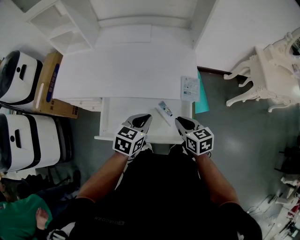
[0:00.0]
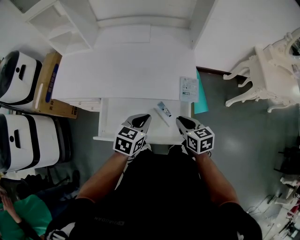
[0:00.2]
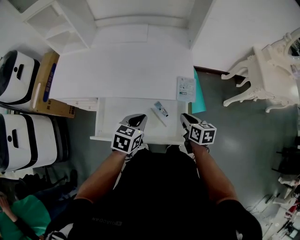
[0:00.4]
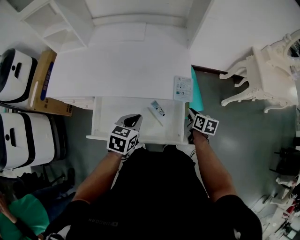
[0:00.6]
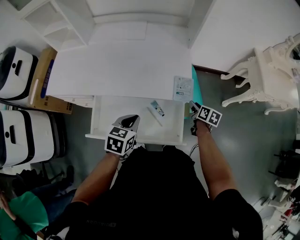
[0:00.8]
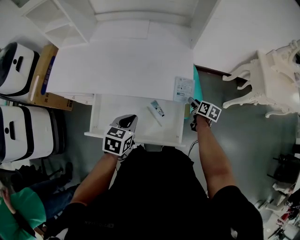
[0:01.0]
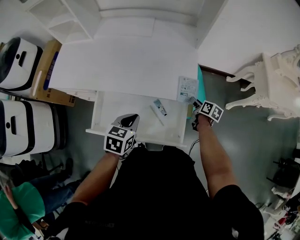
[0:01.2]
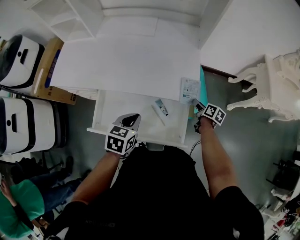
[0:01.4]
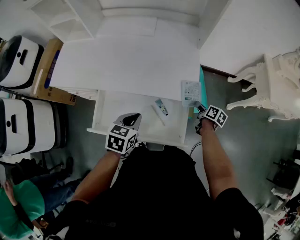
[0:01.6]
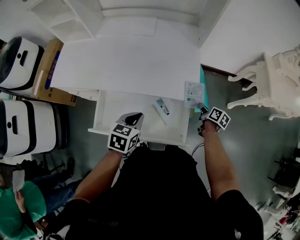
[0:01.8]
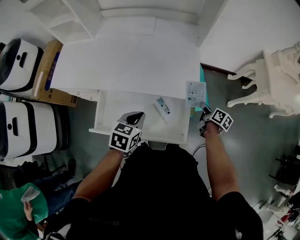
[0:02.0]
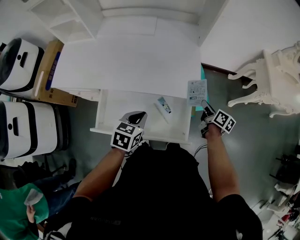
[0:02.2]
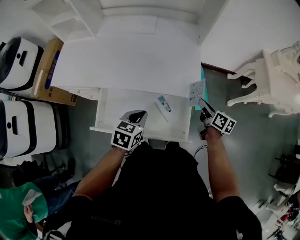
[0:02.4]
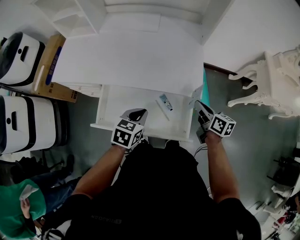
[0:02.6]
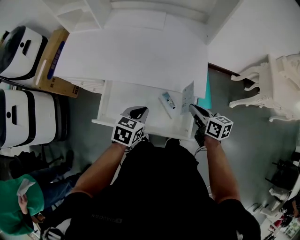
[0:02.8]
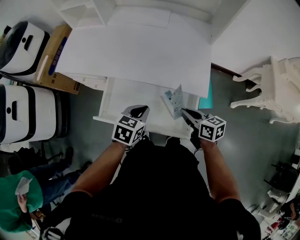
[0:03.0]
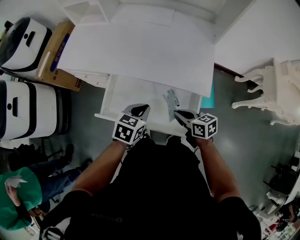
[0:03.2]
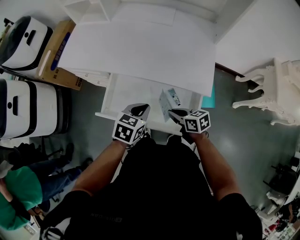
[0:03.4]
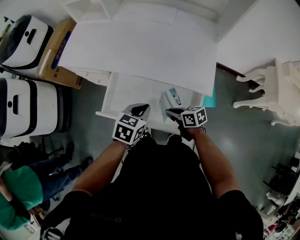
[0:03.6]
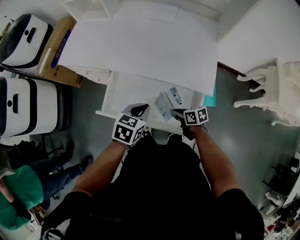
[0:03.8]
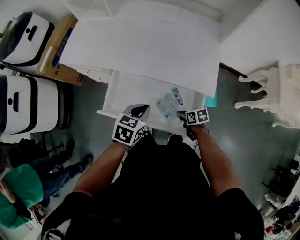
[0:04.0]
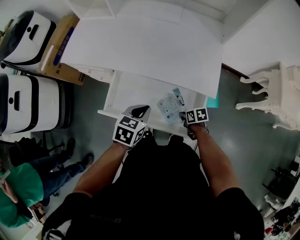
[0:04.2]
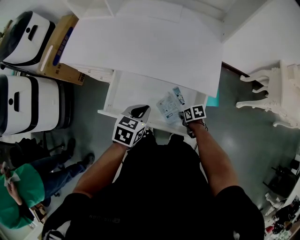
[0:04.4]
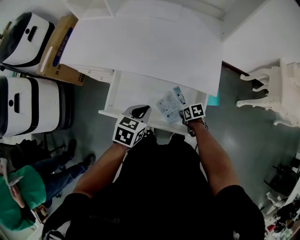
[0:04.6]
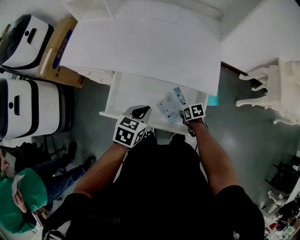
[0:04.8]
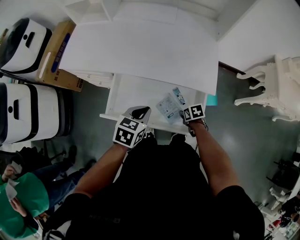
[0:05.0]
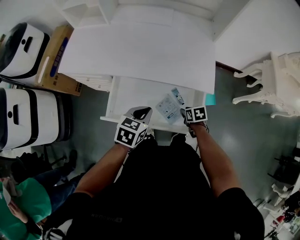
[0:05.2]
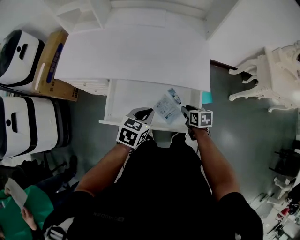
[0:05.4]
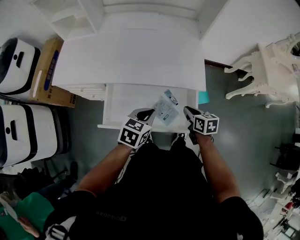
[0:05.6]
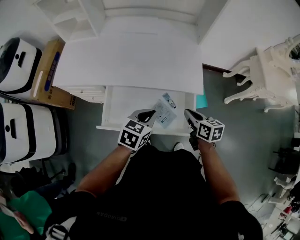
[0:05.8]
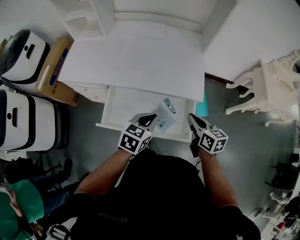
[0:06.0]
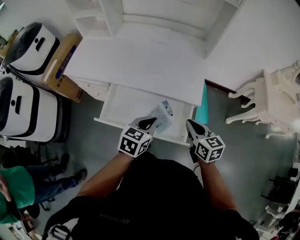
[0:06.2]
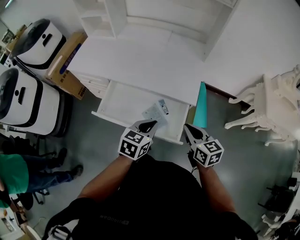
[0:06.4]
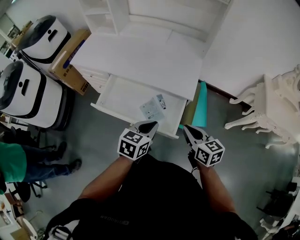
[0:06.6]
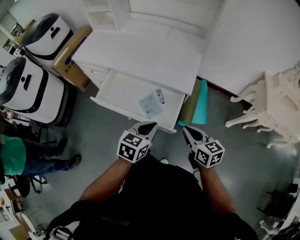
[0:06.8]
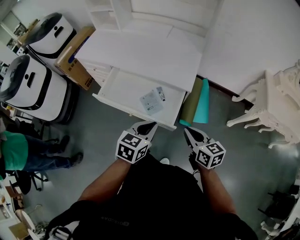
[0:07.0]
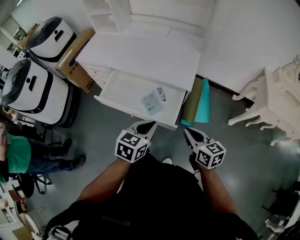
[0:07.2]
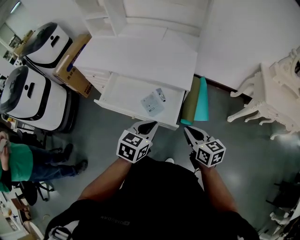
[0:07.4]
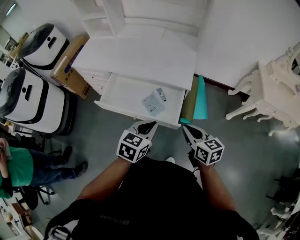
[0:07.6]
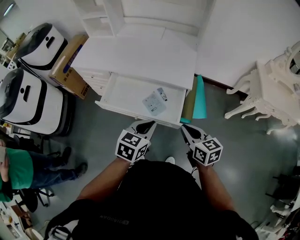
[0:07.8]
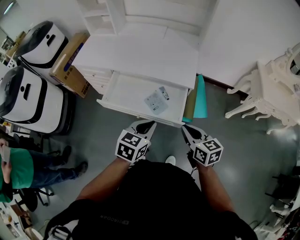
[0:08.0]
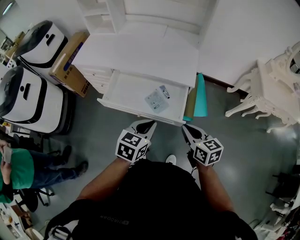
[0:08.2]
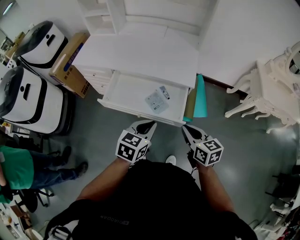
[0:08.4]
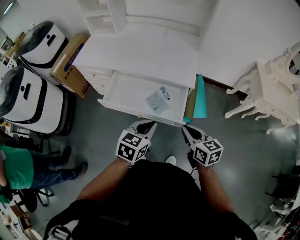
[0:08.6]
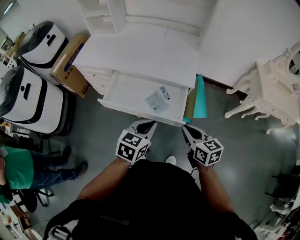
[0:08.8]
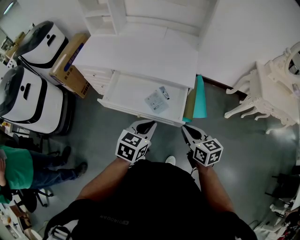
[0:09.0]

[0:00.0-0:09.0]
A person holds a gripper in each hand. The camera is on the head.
0.0 to 1.6 s: The right gripper is displaced to the right, downward and forward by about 25 cm, and rolls clockwise, seen from behind, by roughly 40 degrees.
1.6 to 3.0 s: The right gripper moves to the left, upward and backward, about 25 cm, and changes its angle by approximately 50 degrees.
3.0 to 4.4 s: The right gripper is displaced downward by roughly 20 cm, and angles its fingers downward, by approximately 30 degrees.
4.4 to 6.0 s: The right gripper heads upward, covering approximately 25 cm, tilts its fingers some 30 degrees upward, and opens and closes again, while the left gripper moves approximately 10 cm.
6.0 to 7.6 s: The right gripper heads backward, covering roughly 20 cm. Meanwhile the left gripper heads backward and to the right, covering approximately 20 cm.
7.6 to 9.0 s: There are only small adjustments of the grippers.

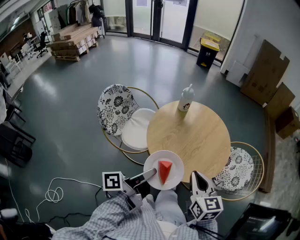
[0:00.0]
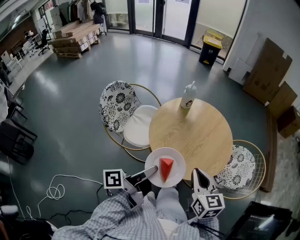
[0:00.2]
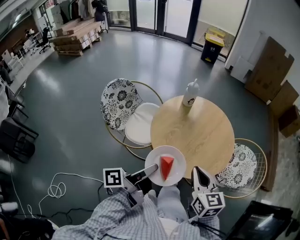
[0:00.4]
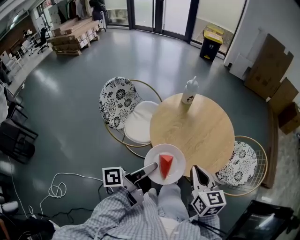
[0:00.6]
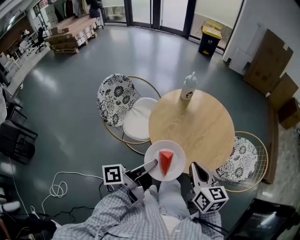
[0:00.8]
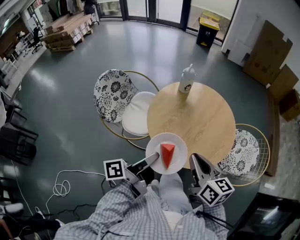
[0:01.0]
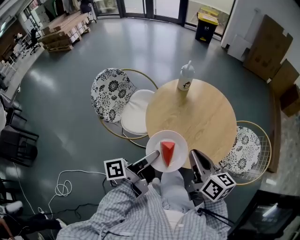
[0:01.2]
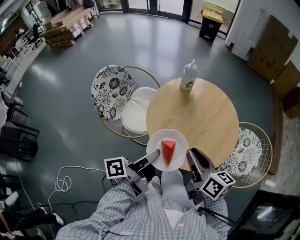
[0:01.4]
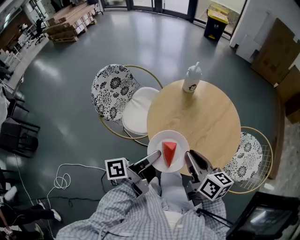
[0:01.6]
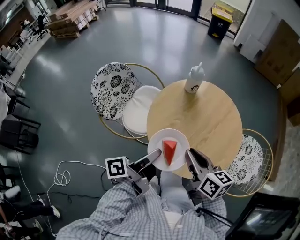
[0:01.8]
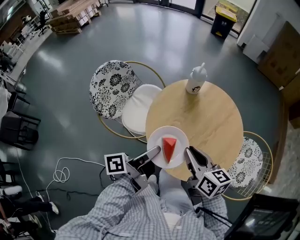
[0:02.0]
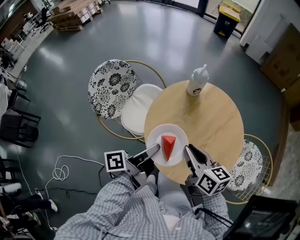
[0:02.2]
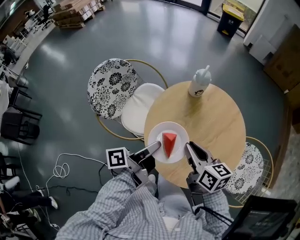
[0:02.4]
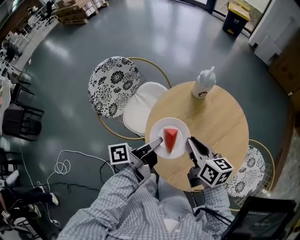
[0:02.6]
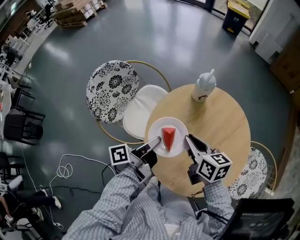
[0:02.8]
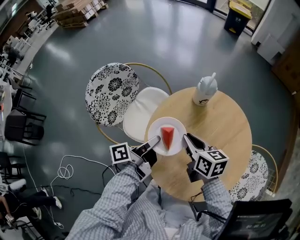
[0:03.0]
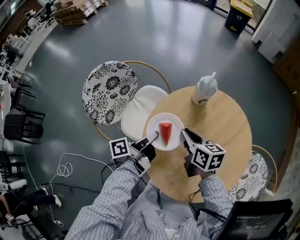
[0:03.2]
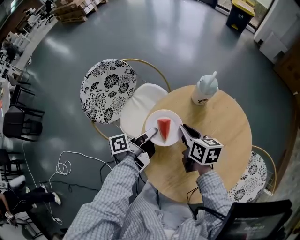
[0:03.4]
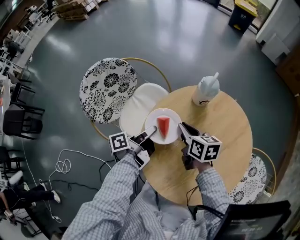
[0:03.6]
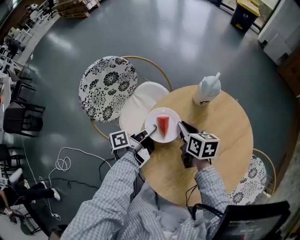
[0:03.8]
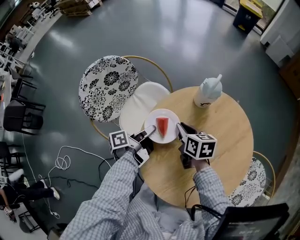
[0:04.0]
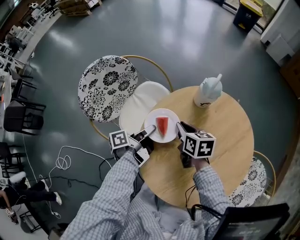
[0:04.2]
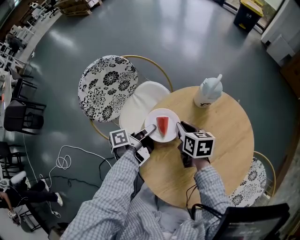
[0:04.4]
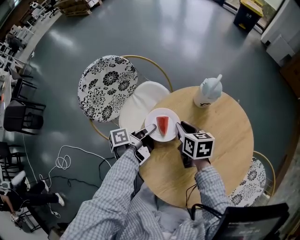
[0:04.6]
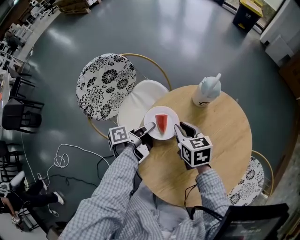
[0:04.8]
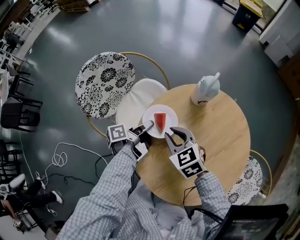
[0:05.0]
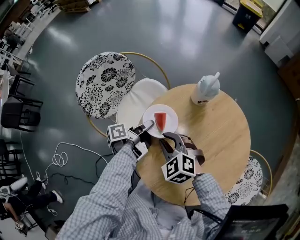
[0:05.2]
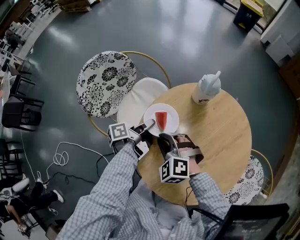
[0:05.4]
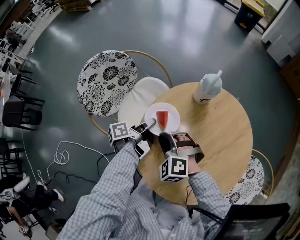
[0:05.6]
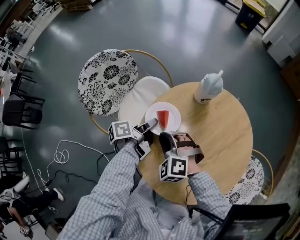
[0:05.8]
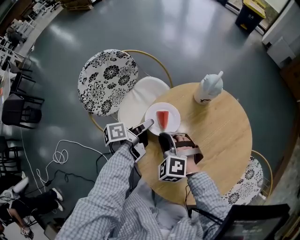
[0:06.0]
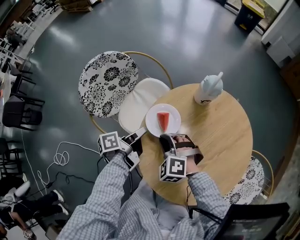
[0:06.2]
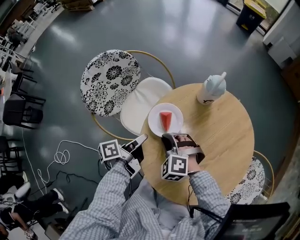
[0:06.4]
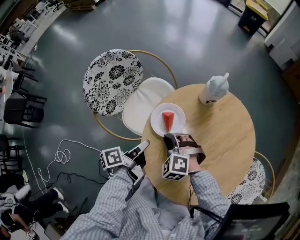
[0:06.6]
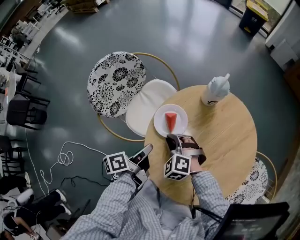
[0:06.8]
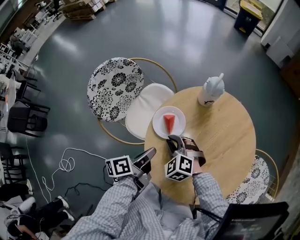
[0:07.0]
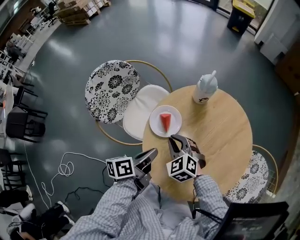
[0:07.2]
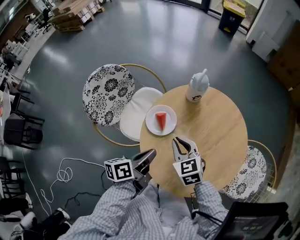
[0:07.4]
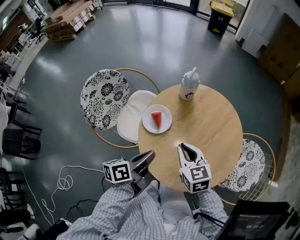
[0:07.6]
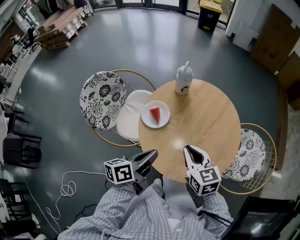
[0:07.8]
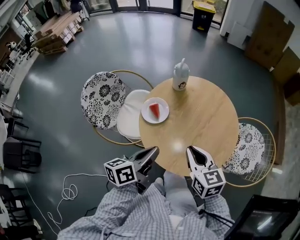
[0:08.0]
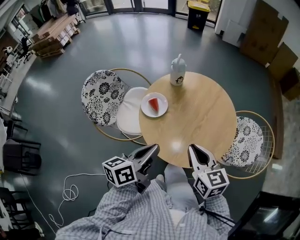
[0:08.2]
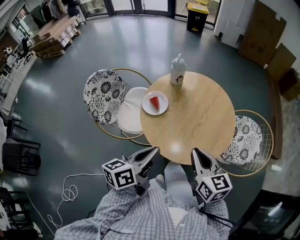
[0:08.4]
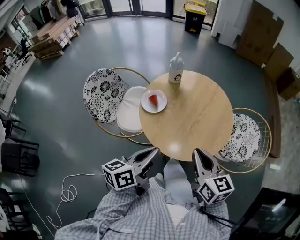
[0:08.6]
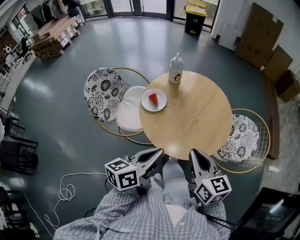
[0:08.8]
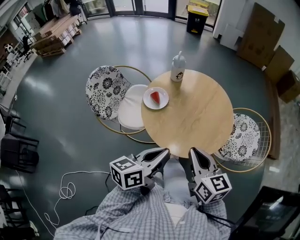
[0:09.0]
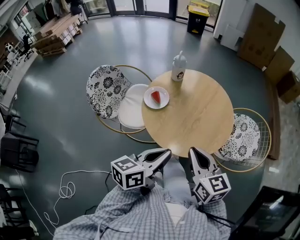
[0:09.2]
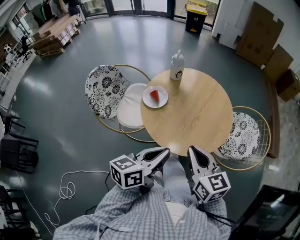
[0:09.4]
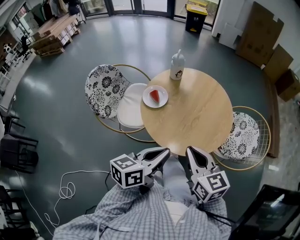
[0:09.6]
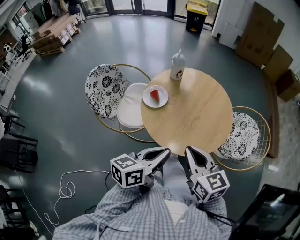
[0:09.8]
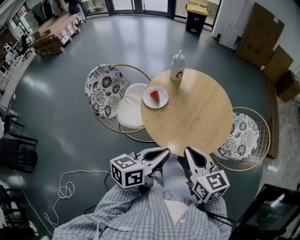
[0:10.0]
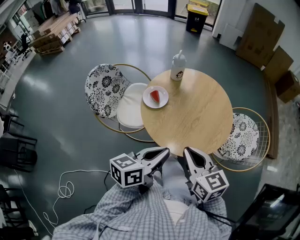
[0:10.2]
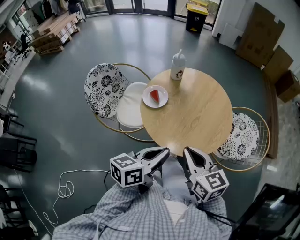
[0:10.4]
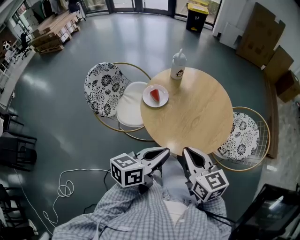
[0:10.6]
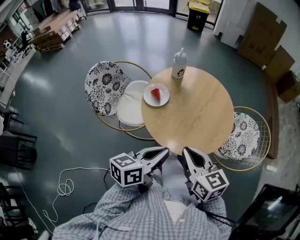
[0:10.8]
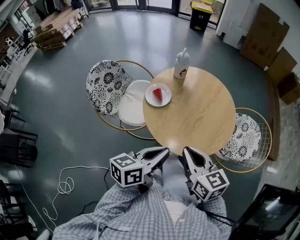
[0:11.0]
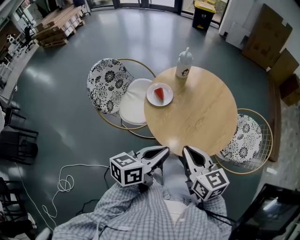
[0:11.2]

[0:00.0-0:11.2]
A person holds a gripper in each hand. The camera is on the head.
0.0 to 1.6 s: Both grippers travel together forward, about 10 cm. The right gripper turns by some 30 degrees.
1.6 to 3.2 s: Both grippers travel together forward and downward, some 25 cm.
3.2 to 4.8 s: The left gripper moves downward, about 5 cm. The right gripper changes its angle by roughly 20 degrees.
4.8 to 6.4 s: The right gripper travels backward and to the left by about 10 cm, and rotates around the line of its fingers by about 70 degrees, counterclockwise from behind; the left gripper travels backward by roughly 5 cm.
6.4 to 8.0 s: The right gripper travels upward, to the right and backward by some 25 cm, and twists about 70 degrees clockwise, seen from behind, while the left gripper goes roughly 20 cm upward, backward and to the right, turns by roughly 40 degrees, and closes its fingers.
8.0 to 9.6 s: The right gripper shifts some 10 cm backward and upward. Meanwhile the left gripper is displaced backward, to the right and upward by roughly 10 cm.
9.6 to 11.2 s: The grippers move only a little.

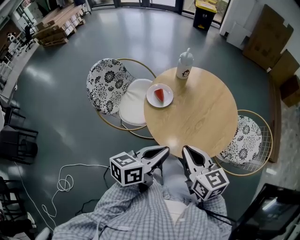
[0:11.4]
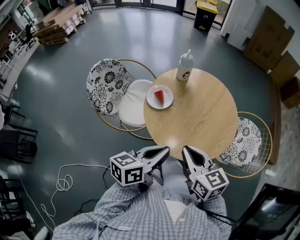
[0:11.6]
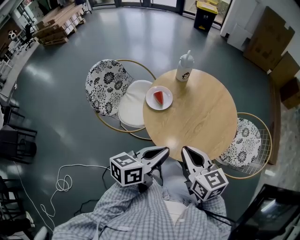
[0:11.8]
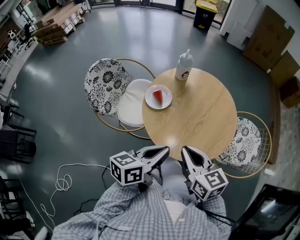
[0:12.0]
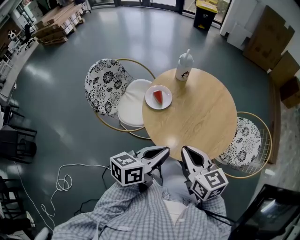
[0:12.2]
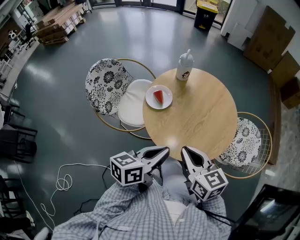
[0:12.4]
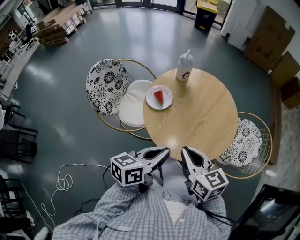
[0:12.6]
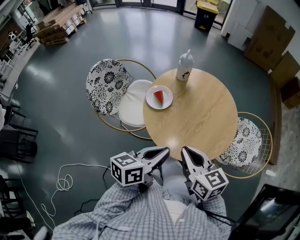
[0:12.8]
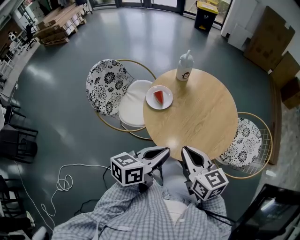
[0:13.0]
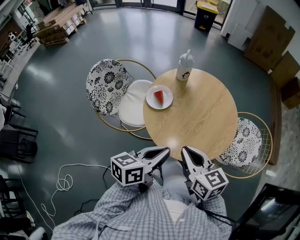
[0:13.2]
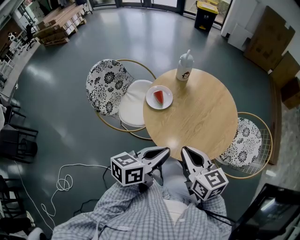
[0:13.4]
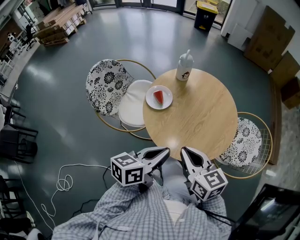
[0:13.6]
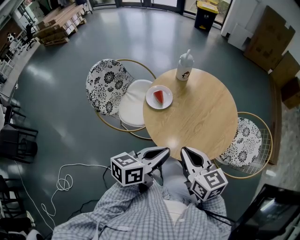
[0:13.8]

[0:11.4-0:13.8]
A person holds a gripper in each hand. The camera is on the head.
11.4 to 12.6 s: The grippers make only small movements.
12.6 to 13.8 s: Neither gripper changes place.

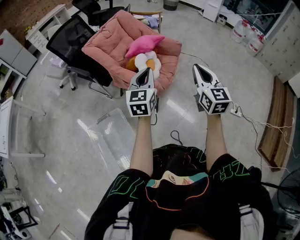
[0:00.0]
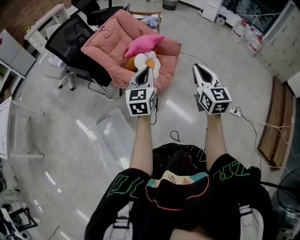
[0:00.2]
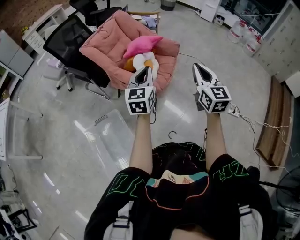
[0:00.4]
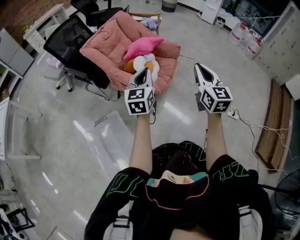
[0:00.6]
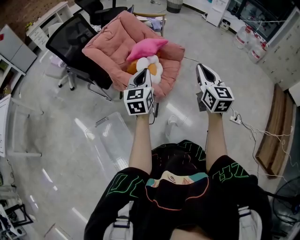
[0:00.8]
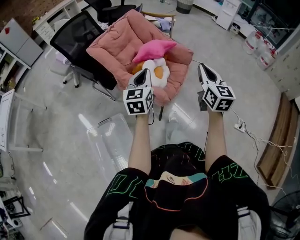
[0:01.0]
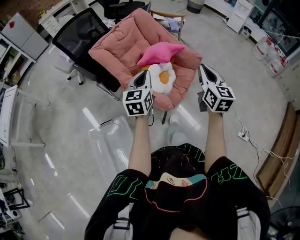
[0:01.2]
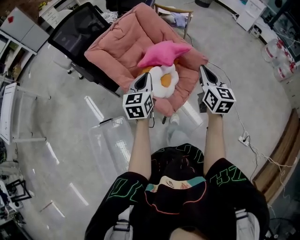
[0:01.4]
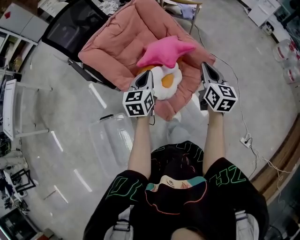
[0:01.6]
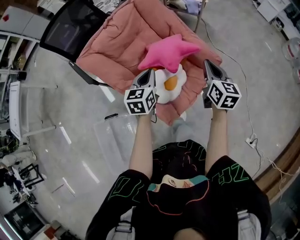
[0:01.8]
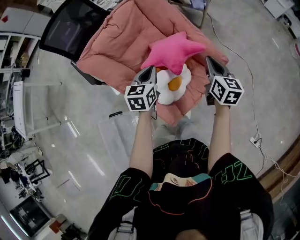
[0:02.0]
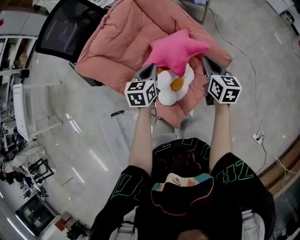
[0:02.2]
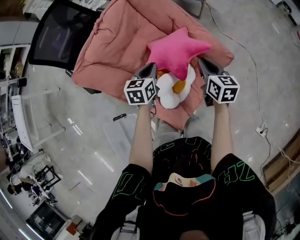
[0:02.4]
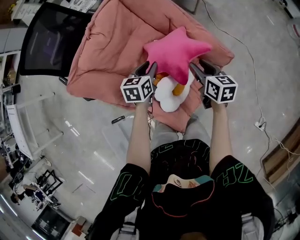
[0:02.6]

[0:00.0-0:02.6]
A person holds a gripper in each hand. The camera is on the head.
0.0 to 1.2 s: The grippers both shift forward by roughly 20 cm.
1.2 to 2.6 s: The two grippers go about 50 cm forward and downward. The right gripper swivels approximately 40 degrees, and opens; the left gripper rotates approximately 30 degrees.
